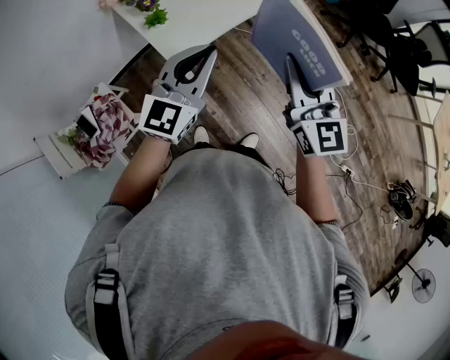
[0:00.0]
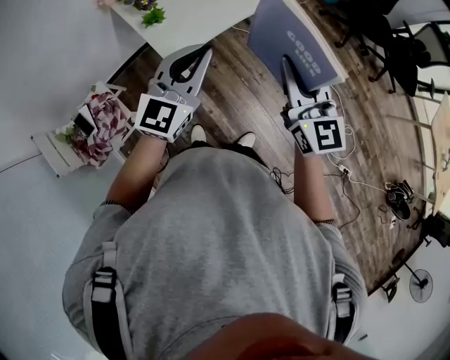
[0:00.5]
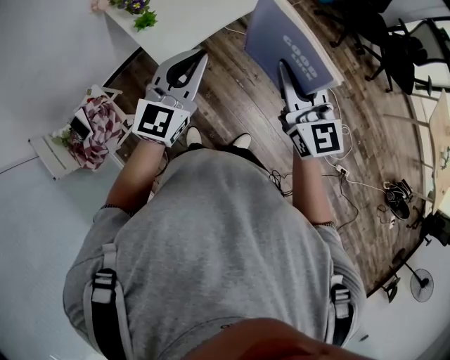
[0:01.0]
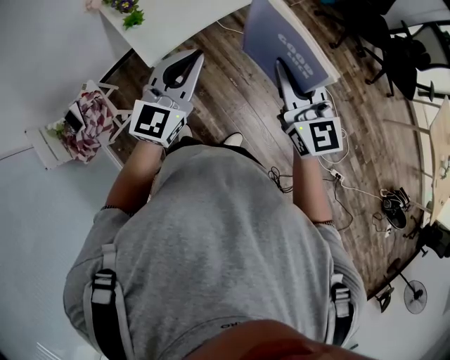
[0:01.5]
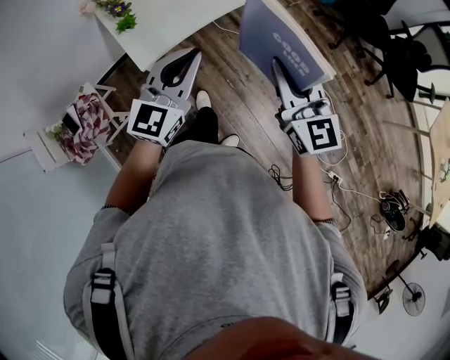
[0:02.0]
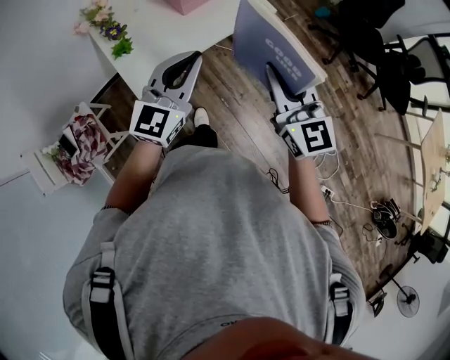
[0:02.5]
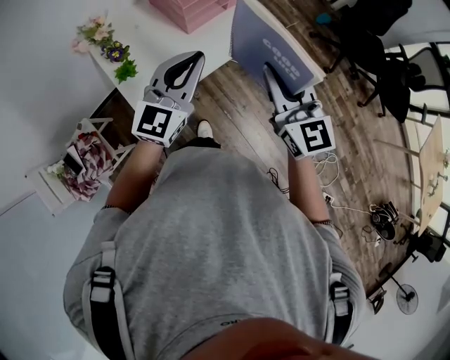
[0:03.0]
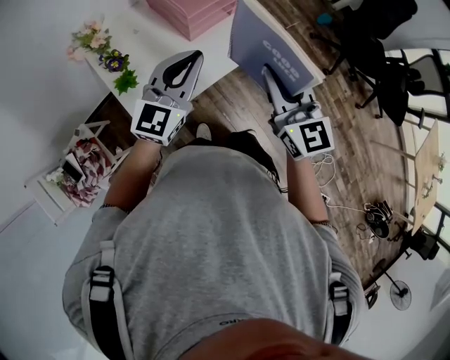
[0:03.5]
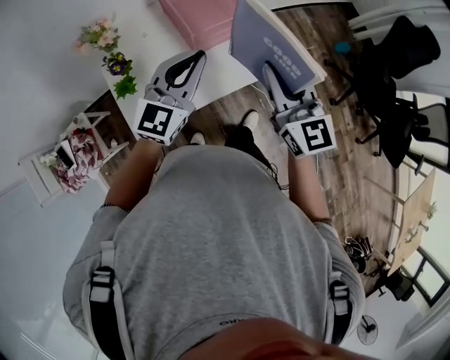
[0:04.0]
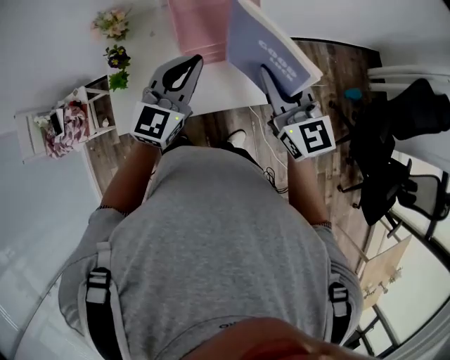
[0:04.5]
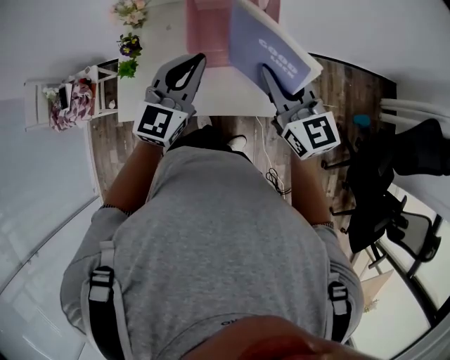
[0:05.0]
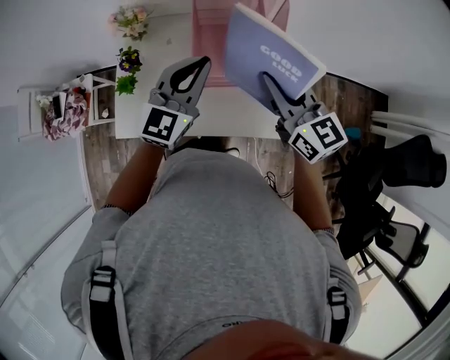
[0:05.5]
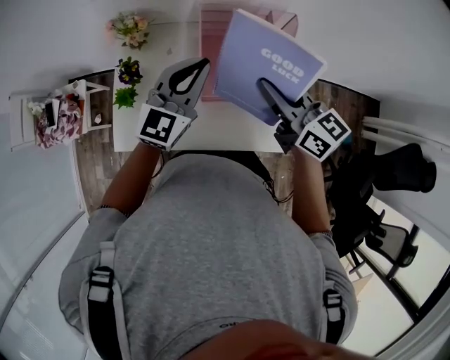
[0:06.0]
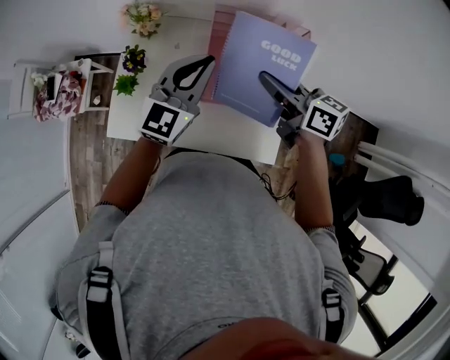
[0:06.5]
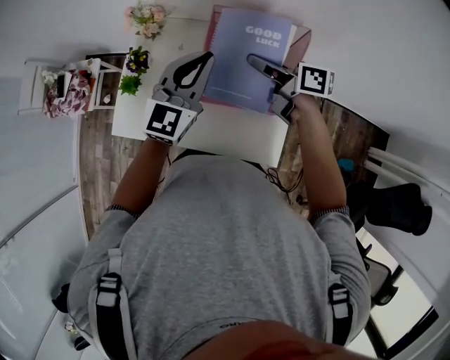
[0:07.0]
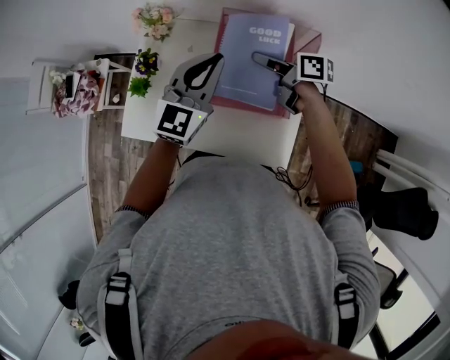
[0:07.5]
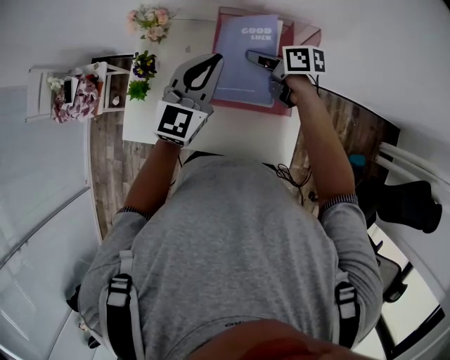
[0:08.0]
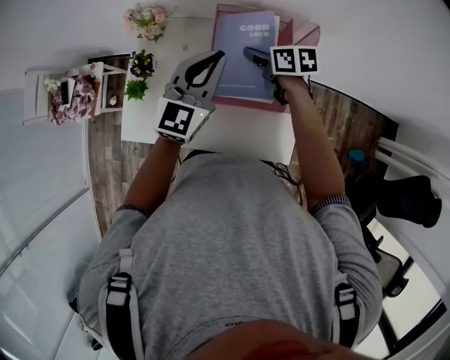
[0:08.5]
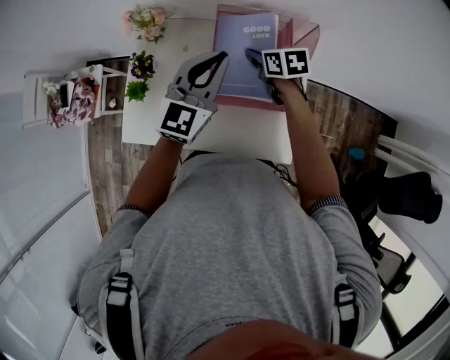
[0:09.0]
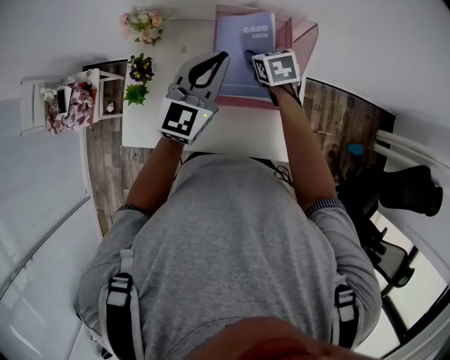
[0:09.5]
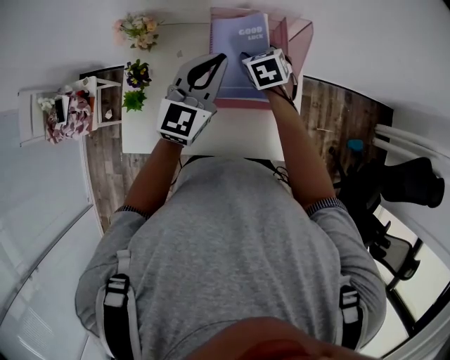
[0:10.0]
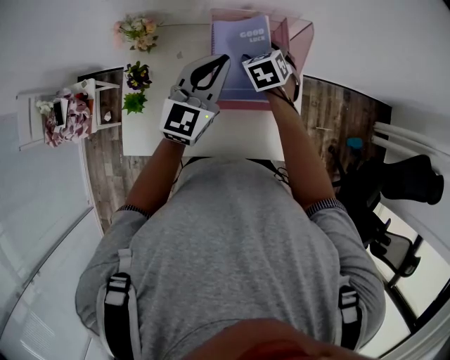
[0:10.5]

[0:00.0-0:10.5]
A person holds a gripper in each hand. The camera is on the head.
0:00.0 to 0:02.0: The two grippers go approximately 15 cm to the right.
0:02.0 to 0:04.0: The two grippers go approximately 35 cm forward.
0:04.0 to 0:06.5: The right gripper ends up some 30 cm from where it was, and rotates some 70 degrees. Meanwhile the left gripper changes place by some 20 cm, and changes its angle by approximately 30 degrees.
0:06.5 to 0:08.5: The right gripper heads downward and forward, covering some 15 cm, and rotates some 20 degrees.
0:08.5 to 0:10.5: The right gripper turns by roughly 50 degrees, and opens.

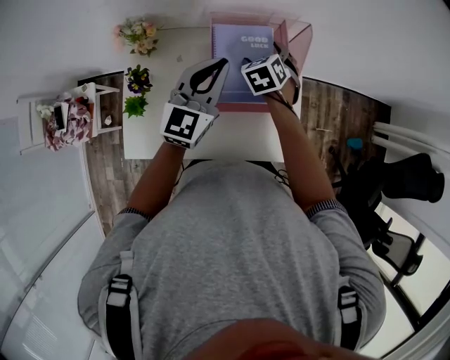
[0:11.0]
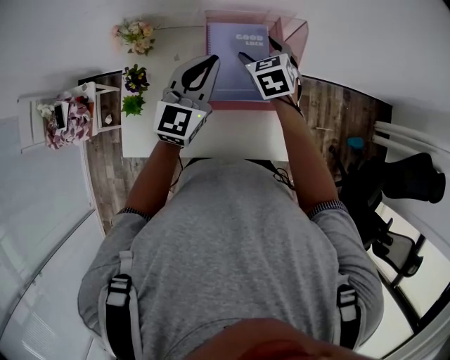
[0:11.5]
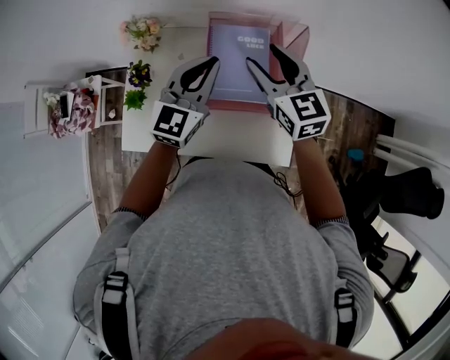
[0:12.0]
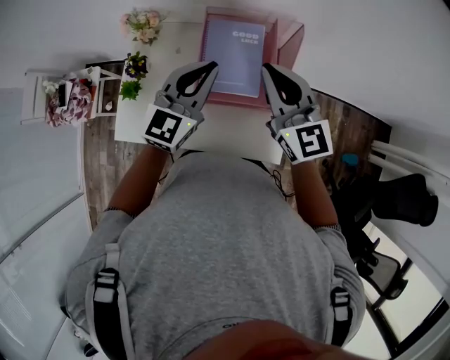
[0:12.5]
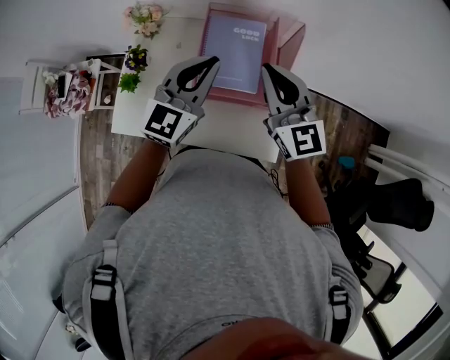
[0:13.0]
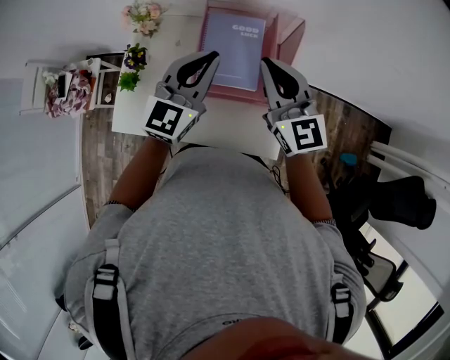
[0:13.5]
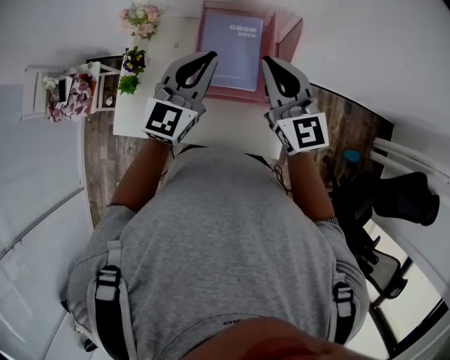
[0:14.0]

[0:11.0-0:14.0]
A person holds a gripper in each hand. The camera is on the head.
0:11.0 to 0:12.5: The right gripper moves upward and backward, roughly 25 cm, tips its fingers upward by some 50 degrees, and closes its fingers, while the left gripper moves approximately 5 cm.
0:12.5 to 0:14.0: The grippers stay close to where they were, moving slightly.

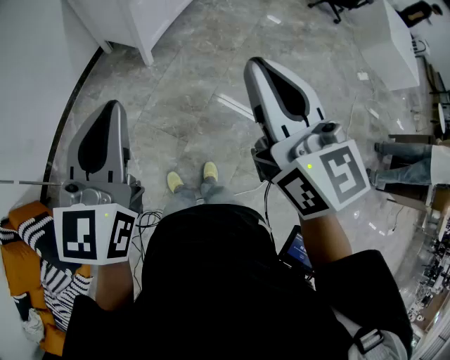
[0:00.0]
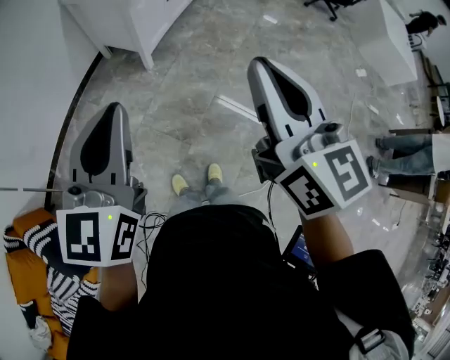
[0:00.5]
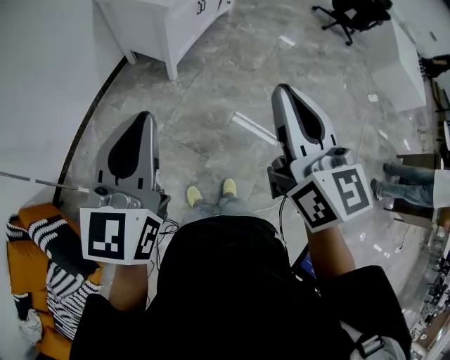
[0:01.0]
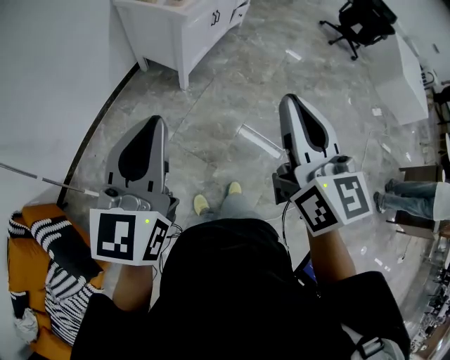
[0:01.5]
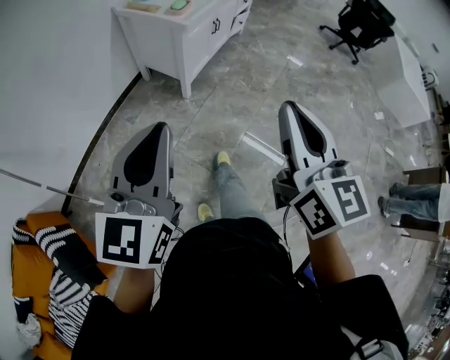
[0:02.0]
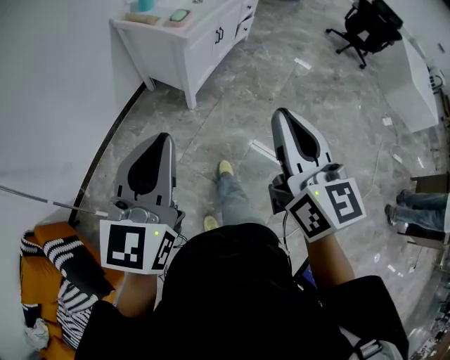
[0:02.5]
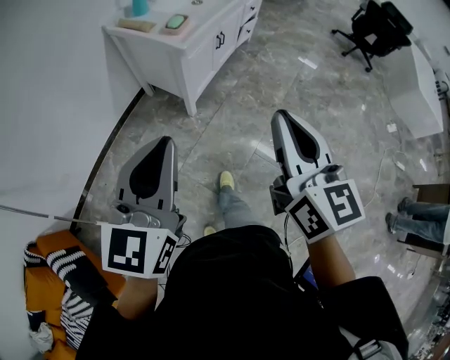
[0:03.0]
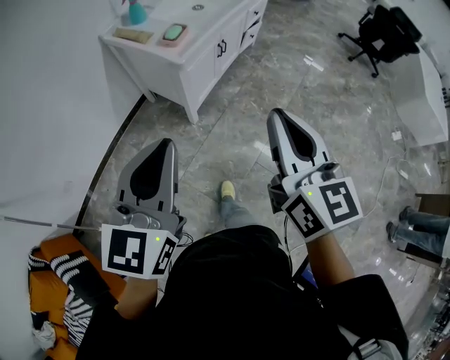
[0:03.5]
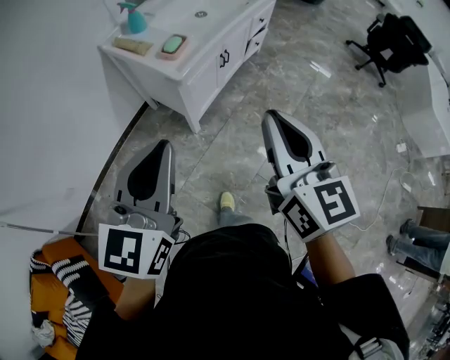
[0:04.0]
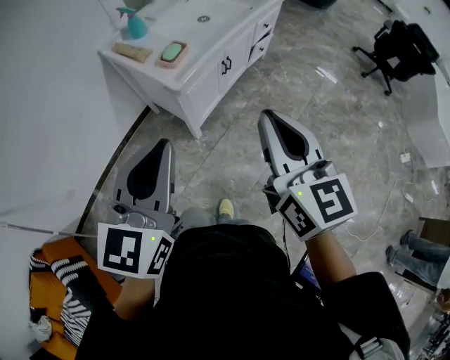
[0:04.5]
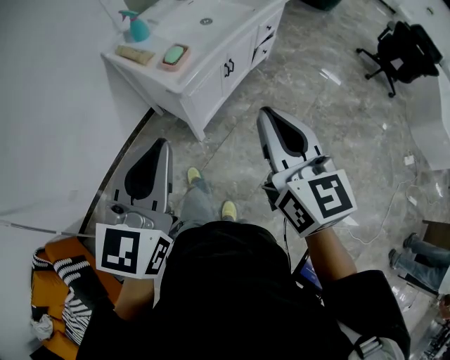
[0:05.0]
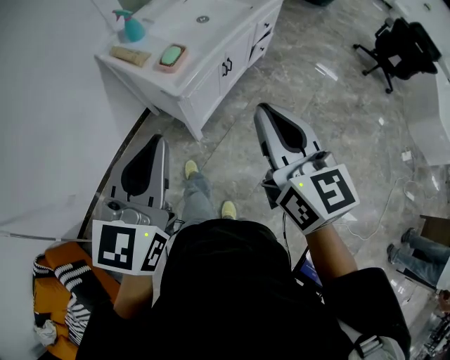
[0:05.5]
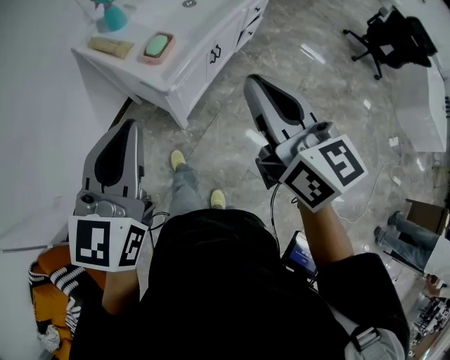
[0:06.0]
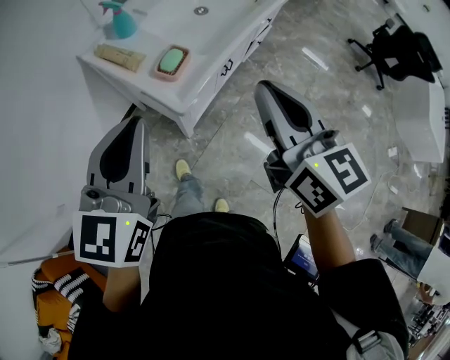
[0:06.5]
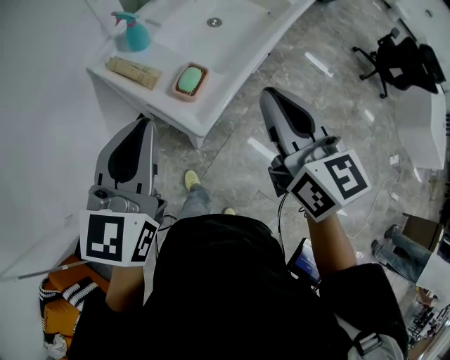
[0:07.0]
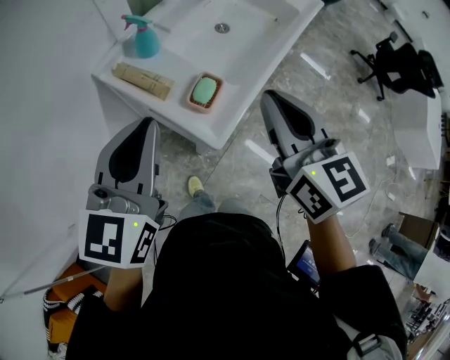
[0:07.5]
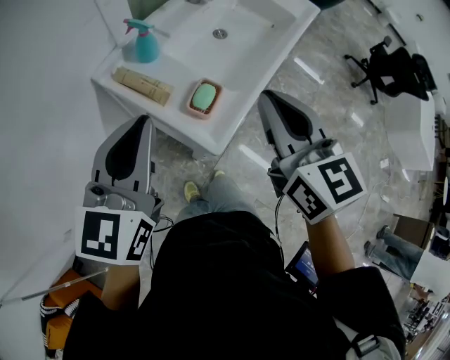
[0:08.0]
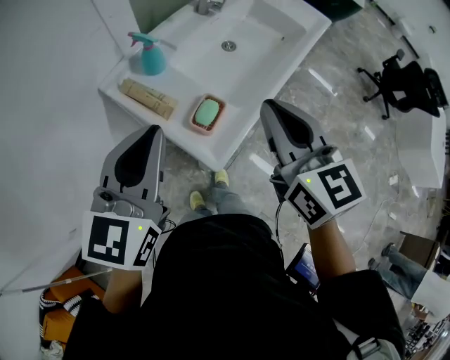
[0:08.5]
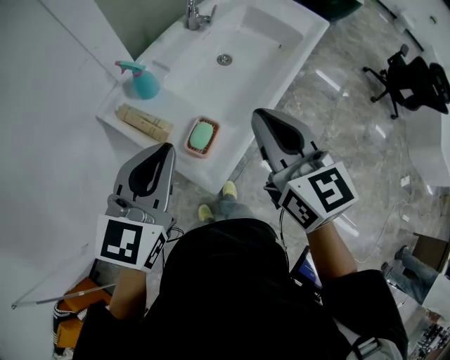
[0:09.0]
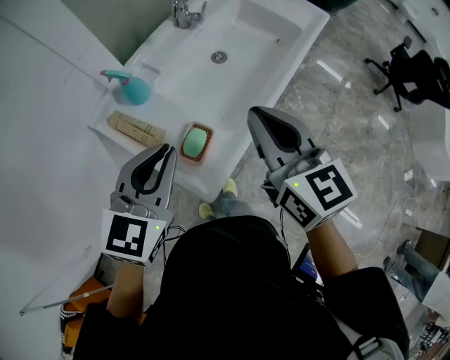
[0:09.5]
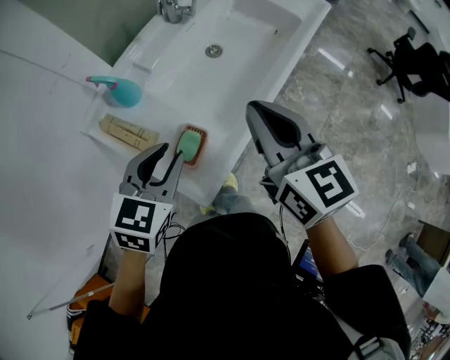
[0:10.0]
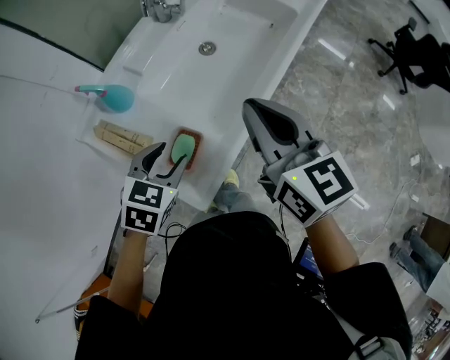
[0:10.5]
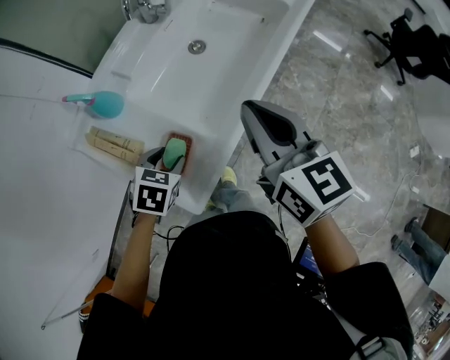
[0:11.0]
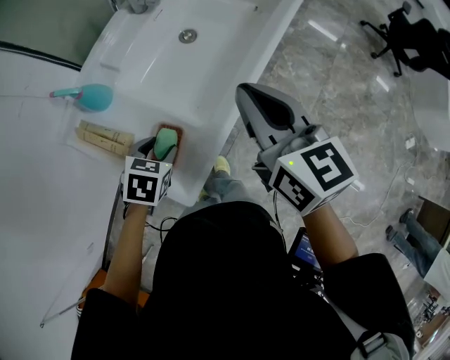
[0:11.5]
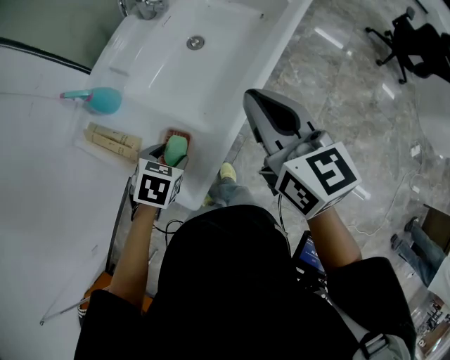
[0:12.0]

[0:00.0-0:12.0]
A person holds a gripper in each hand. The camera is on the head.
0:00.0 to 0:02.0: The two grippers go approximately 10 cm to the left.
0:02.0 to 0:04.0: Both grippers move forward, approximately 30 cm.
0:04.0 to 0:06.0: Both grippers move forward, some 15 cm.
0:06.0 to 0:08.0: The two grippers go about 25 cm forward and to the left.
0:08.0 to 0:10.0: The right gripper goes some 15 cm forward and to the right; the left gripper moves downward, forward and to the right, some 20 cm, turns by some 30 degrees, and opens up.
0:10.0 to 0:12.0: The left gripper moves downward, some 15 cm, angles its fingers downward, by some 30 degrees, and opens up. Meanwhile the right gripper moves roughly 5 cm.

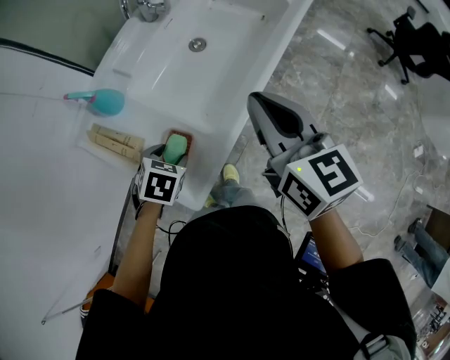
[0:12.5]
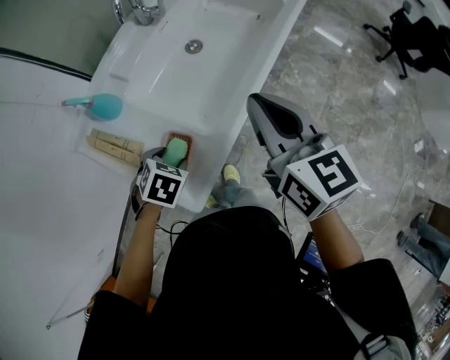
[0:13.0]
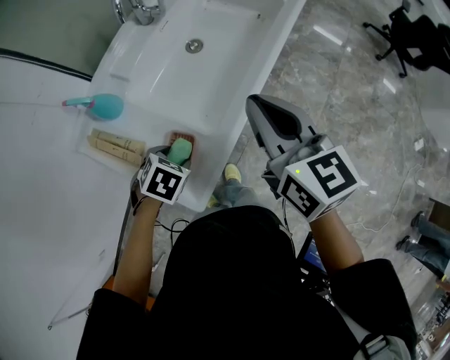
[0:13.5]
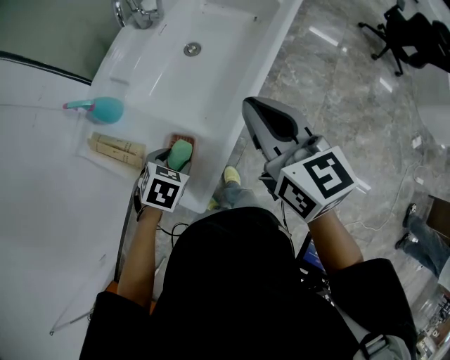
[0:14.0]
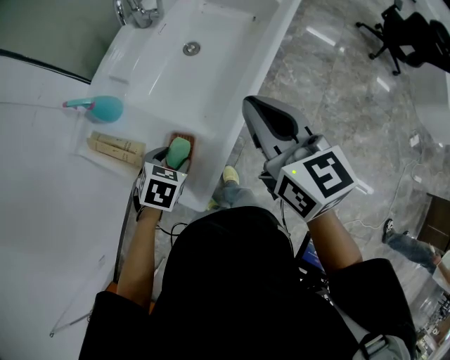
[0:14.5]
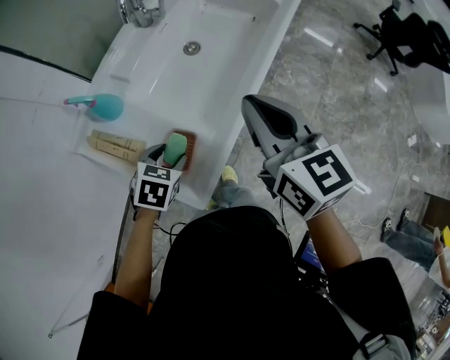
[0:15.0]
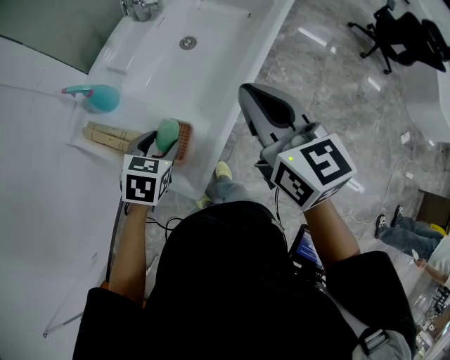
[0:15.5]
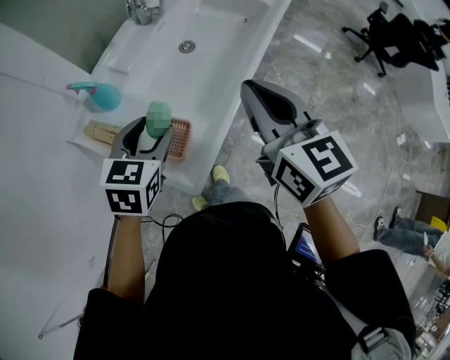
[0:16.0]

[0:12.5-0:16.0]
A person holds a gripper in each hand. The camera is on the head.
0:12.5 to 0:14.5: There are only small adjustments of the grippers.
0:14.5 to 0:16.0: The left gripper heads upward, covering approximately 15 cm, and turns by about 30 degrees.
